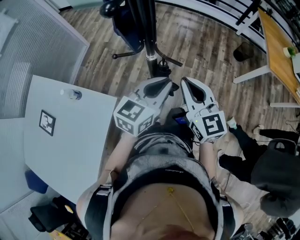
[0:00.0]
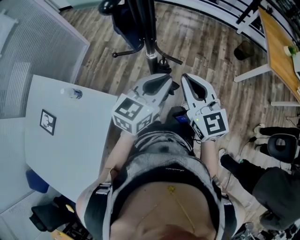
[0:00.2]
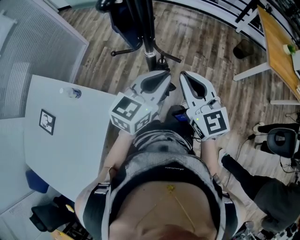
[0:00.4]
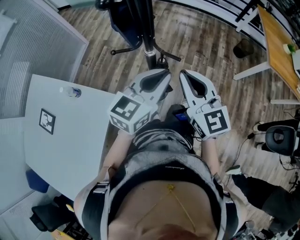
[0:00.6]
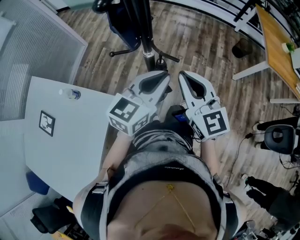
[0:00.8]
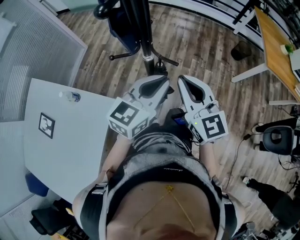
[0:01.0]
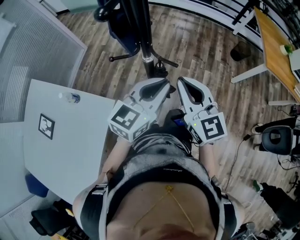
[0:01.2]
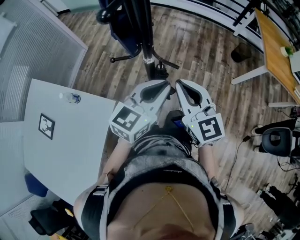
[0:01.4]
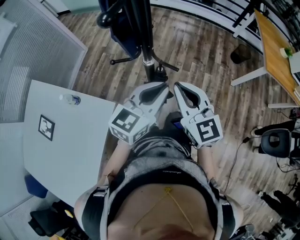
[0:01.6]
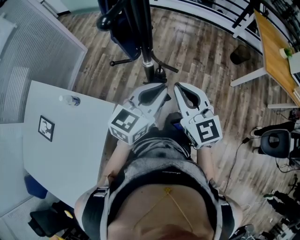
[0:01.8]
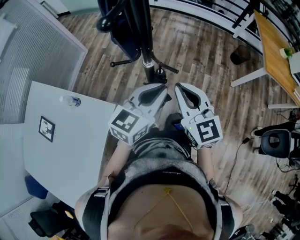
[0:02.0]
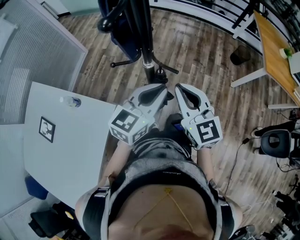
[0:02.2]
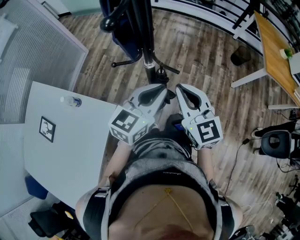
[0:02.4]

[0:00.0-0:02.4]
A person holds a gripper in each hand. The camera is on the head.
0:00.0 to 0:02.4: The grippers stay close to where they were, moving slightly.

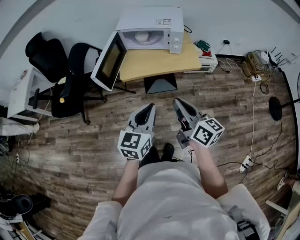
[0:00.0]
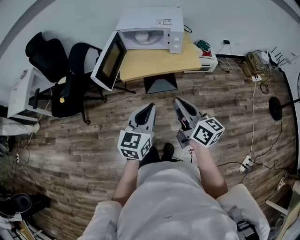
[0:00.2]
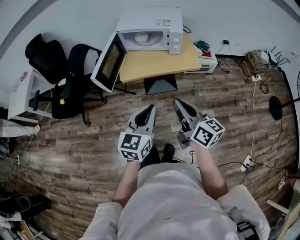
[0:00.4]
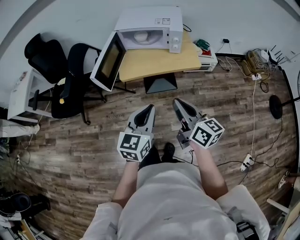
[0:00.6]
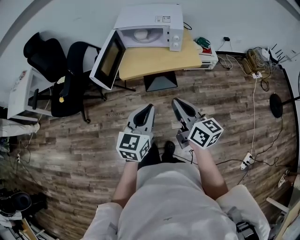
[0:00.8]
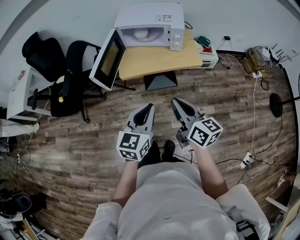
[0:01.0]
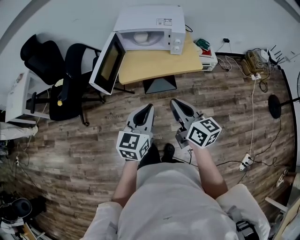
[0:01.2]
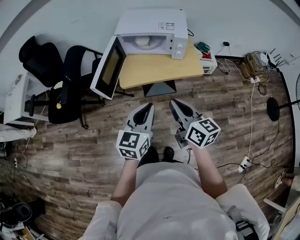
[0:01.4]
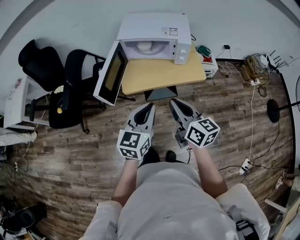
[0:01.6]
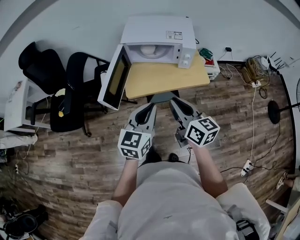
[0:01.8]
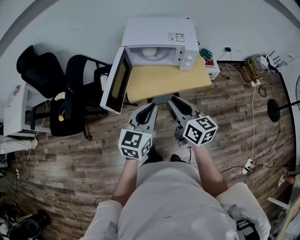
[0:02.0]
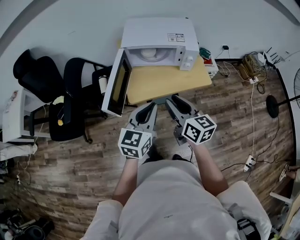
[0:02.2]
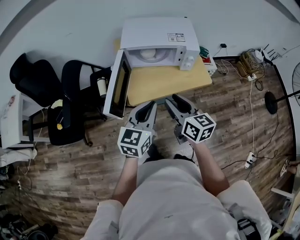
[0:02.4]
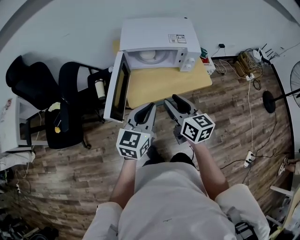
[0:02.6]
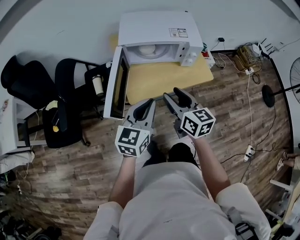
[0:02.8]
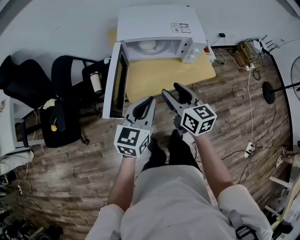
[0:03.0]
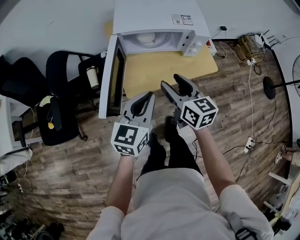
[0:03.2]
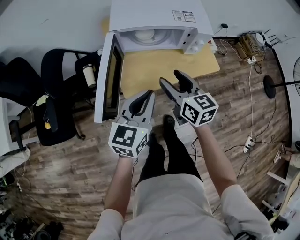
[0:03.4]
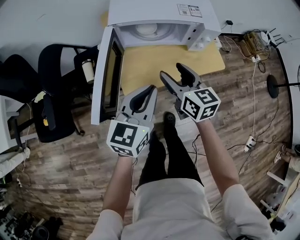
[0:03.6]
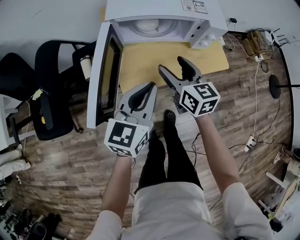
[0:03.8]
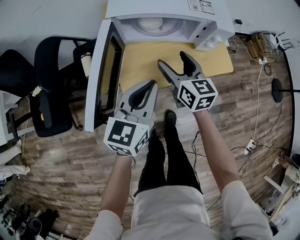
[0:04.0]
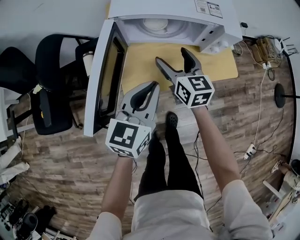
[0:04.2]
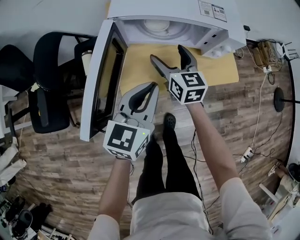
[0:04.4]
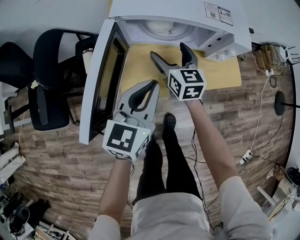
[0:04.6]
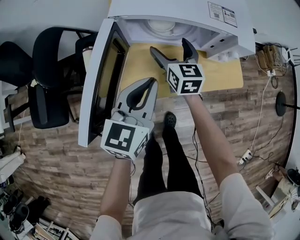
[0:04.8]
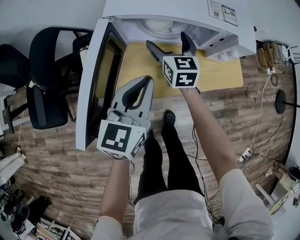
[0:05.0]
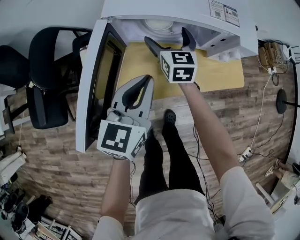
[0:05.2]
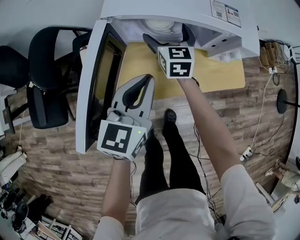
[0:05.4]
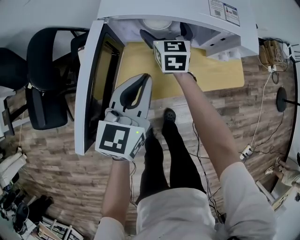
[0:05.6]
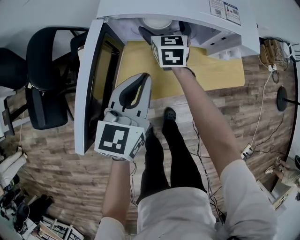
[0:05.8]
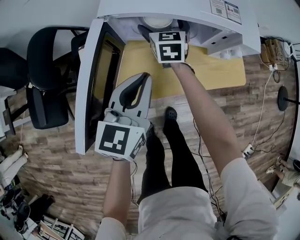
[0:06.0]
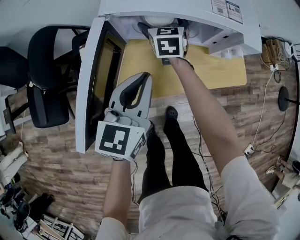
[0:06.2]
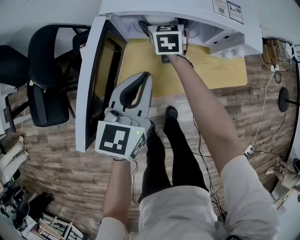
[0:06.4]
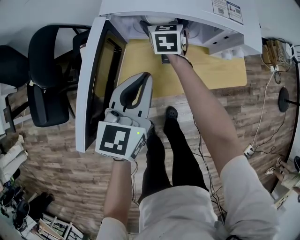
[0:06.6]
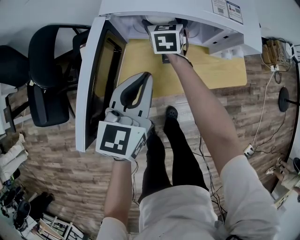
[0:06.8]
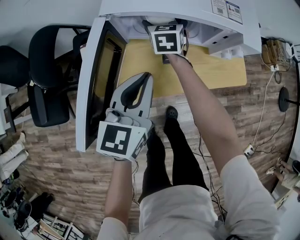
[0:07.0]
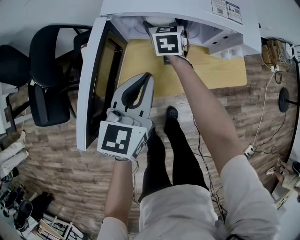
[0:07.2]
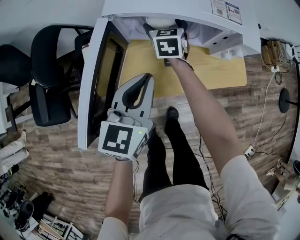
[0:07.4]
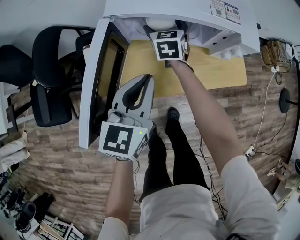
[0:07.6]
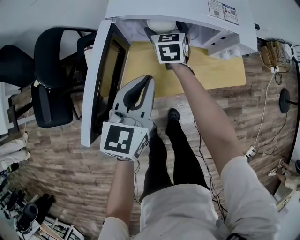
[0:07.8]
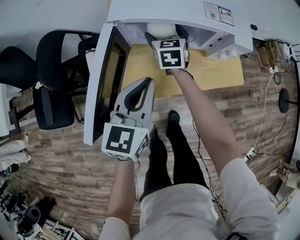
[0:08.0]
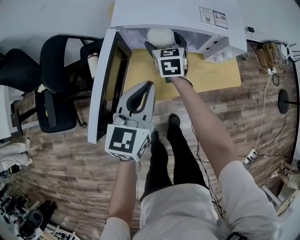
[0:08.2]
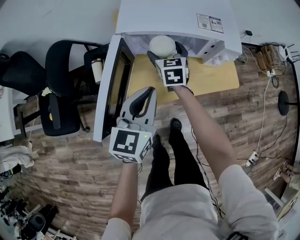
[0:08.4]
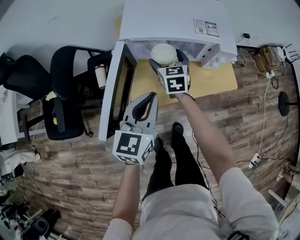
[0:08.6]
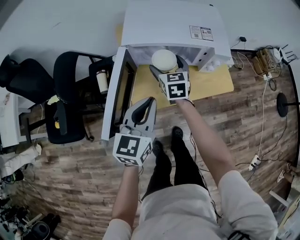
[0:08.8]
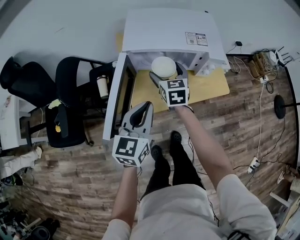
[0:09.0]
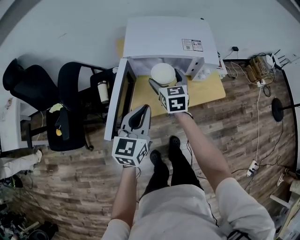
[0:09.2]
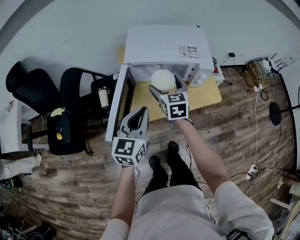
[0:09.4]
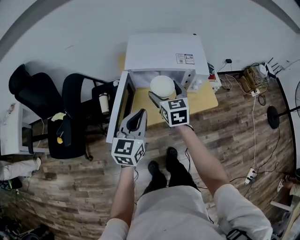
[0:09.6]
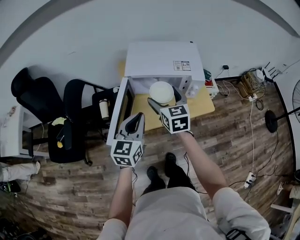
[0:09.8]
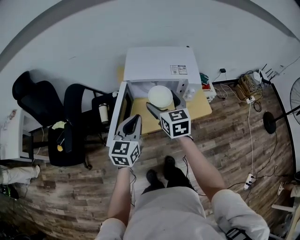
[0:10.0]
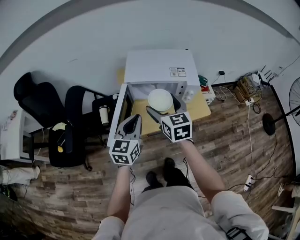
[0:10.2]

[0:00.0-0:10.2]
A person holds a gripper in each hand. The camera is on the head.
0:00.0 to 0:01.4: Both grippers move forward, roughly 5 cm.
0:01.4 to 0:03.0: Both grippers travel together forward and to the left, roughly 20 cm. The right gripper opens up.
0:03.0 to 0:04.4: The left gripper is displaced forward and downward by roughly 15 cm. The right gripper goes some 25 cm forward and downward, and opens up.
0:04.4 to 0:05.8: The left gripper is displaced forward by some 5 cm. The right gripper heads forward, covering approximately 15 cm.
0:05.8 to 0:07.2: The grippers make only small movements.
0:07.2 to 0:08.8: The left gripper goes about 10 cm upward and backward; the right gripper goes approximately 15 cm backward and upward.
0:08.8 to 0:10.2: The left gripper shifts roughly 10 cm upward. The right gripper heads upward and backward, covering approximately 25 cm.

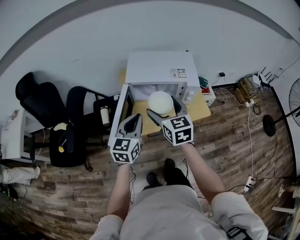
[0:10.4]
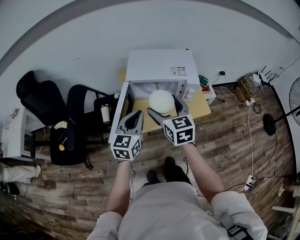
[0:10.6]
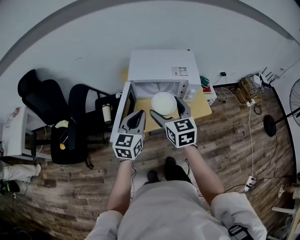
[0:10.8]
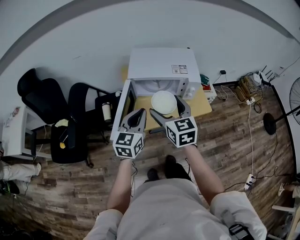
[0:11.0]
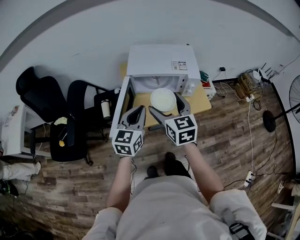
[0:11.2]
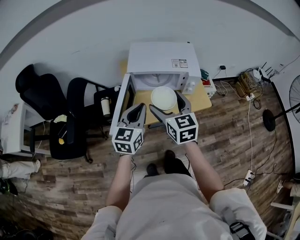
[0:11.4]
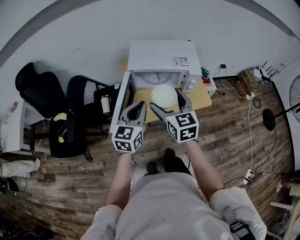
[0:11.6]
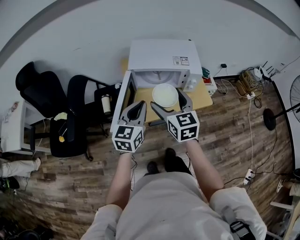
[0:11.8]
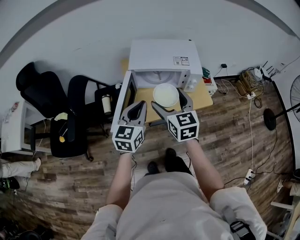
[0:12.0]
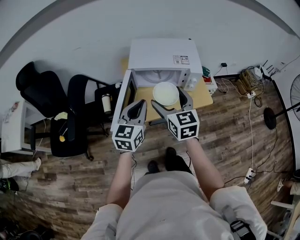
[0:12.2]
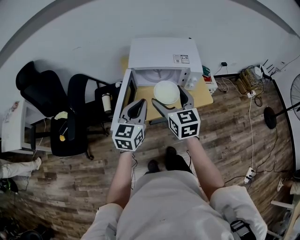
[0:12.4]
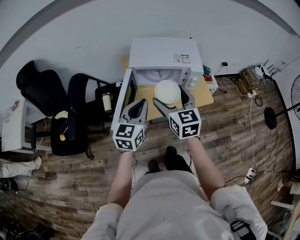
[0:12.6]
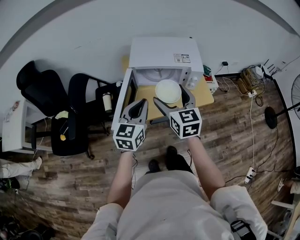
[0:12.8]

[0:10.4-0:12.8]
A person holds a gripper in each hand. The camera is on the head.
0:10.4 to 0:11.6: The grippers move only a little.
0:11.6 to 0:12.8: The two grippers keep their place.

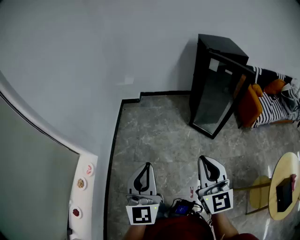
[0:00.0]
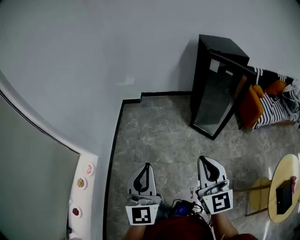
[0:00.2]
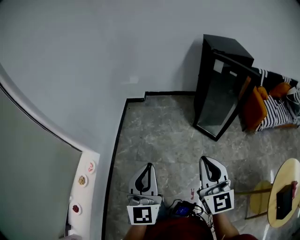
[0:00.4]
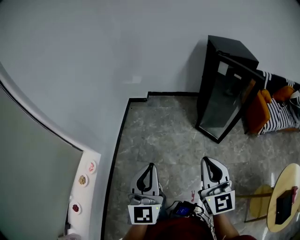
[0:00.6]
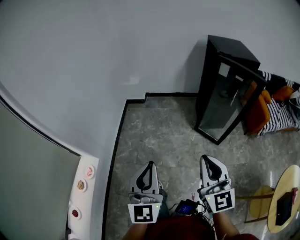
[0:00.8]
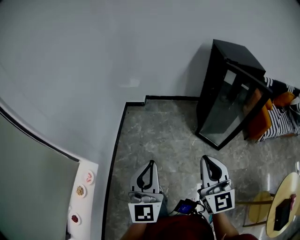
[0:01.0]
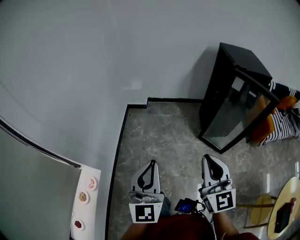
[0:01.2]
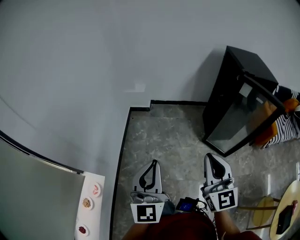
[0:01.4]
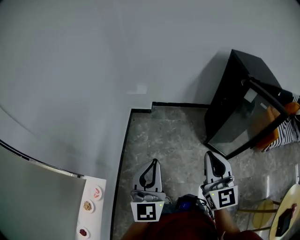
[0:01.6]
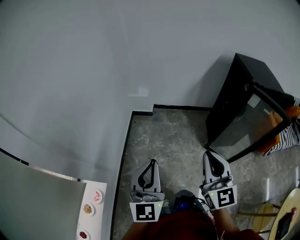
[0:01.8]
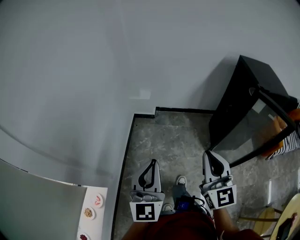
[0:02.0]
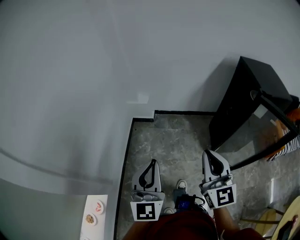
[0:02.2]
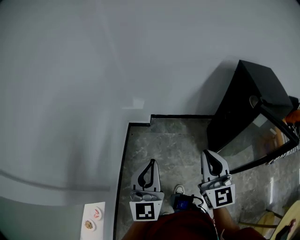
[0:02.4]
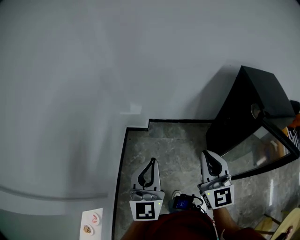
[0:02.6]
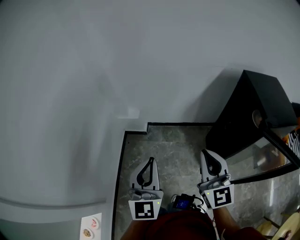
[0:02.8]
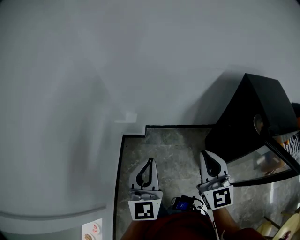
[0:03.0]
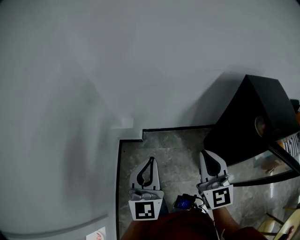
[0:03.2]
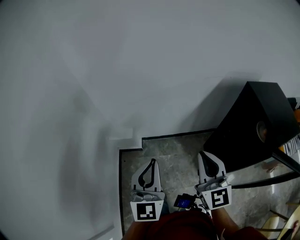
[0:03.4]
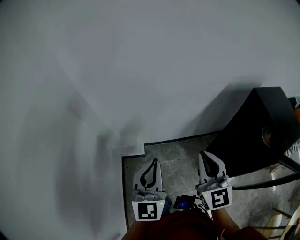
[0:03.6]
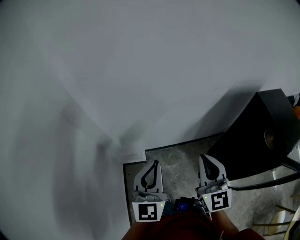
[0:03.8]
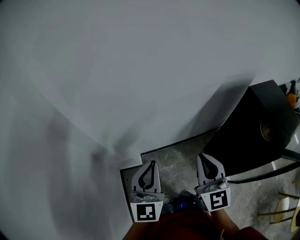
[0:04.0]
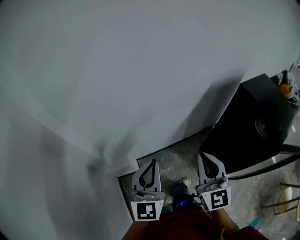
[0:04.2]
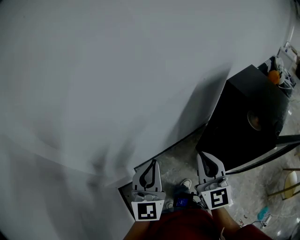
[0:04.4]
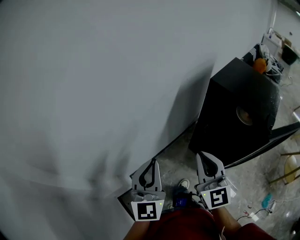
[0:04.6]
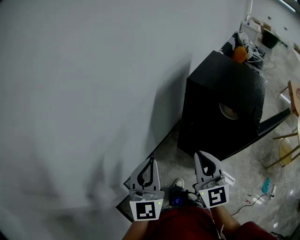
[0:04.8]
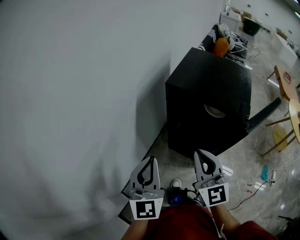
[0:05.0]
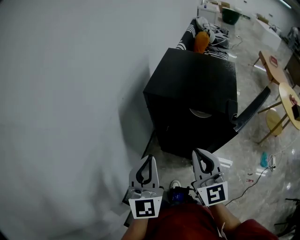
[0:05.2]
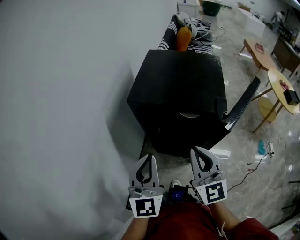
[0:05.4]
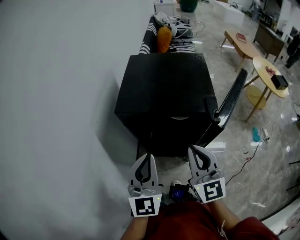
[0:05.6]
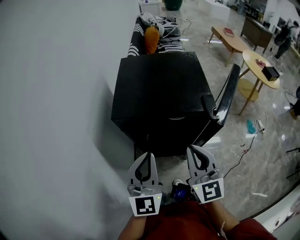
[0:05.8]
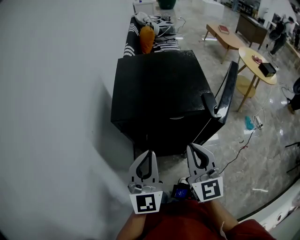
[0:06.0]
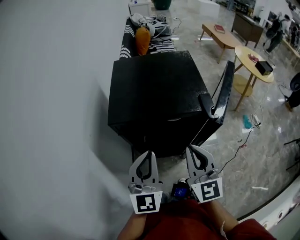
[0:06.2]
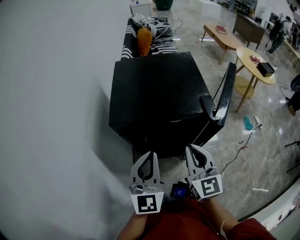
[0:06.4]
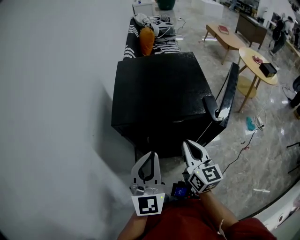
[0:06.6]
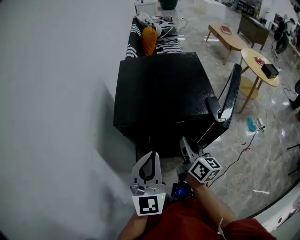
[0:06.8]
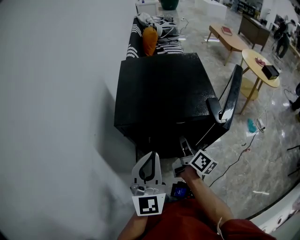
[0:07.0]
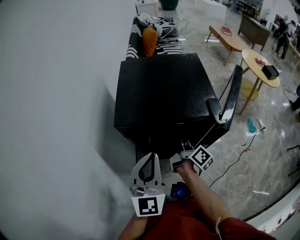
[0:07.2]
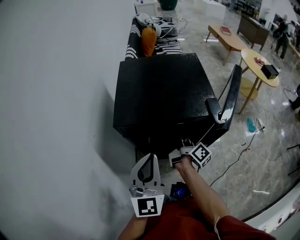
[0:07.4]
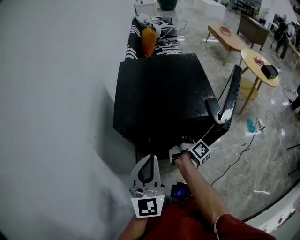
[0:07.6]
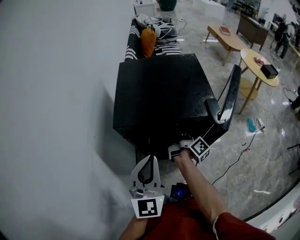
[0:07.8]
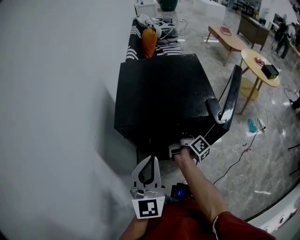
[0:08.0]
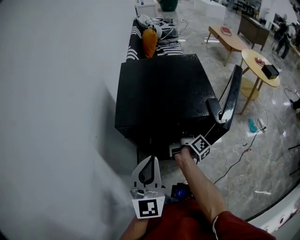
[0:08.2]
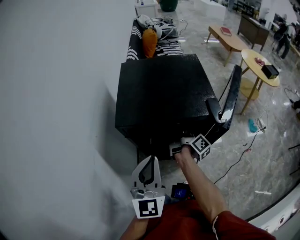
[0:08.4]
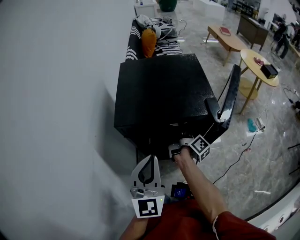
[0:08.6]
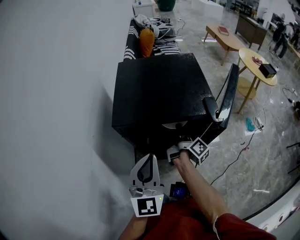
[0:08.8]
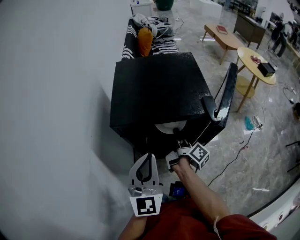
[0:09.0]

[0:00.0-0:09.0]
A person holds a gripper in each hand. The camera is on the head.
0:00.0 to 0:01.6: Both grippers move forward, some 30 cm.
0:01.6 to 0:03.0: Both grippers are carried forward, approximately 40 cm.
0:03.0 to 0:04.4: The right gripper moves about 25 cm, and rotates about 30 degrees, while the left gripper moves approximately 35 cm, and turns by about 30 degrees.
0:04.4 to 0:06.0: The right gripper shifts by approximately 30 cm, and rotates approximately 60 degrees, while the left gripper changes place by approximately 40 cm, and swivels approximately 70 degrees.
0:06.0 to 0:07.6: The right gripper heads forward and downward, covering roughly 20 cm, and twists about 90 degrees clockwise, seen from behind.
0:07.6 to 0:09.0: The grippers make only small movements.
